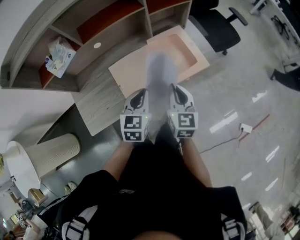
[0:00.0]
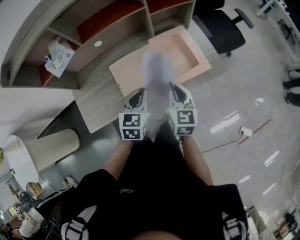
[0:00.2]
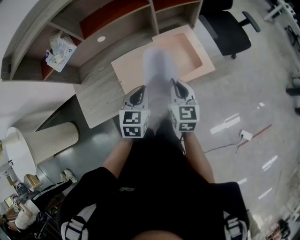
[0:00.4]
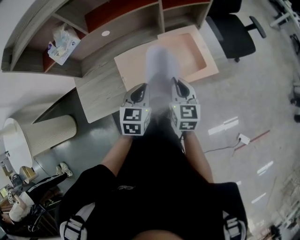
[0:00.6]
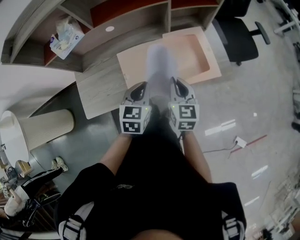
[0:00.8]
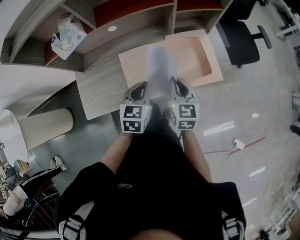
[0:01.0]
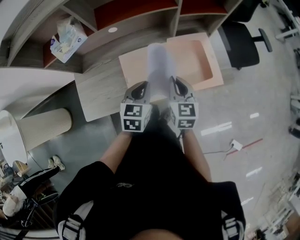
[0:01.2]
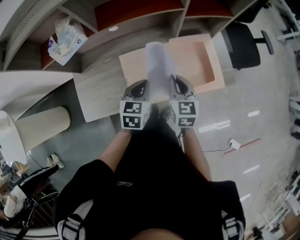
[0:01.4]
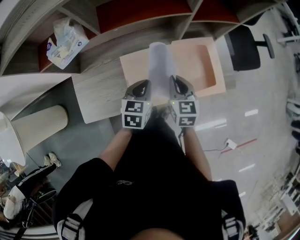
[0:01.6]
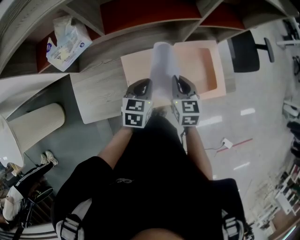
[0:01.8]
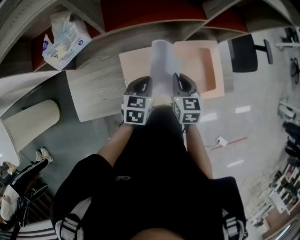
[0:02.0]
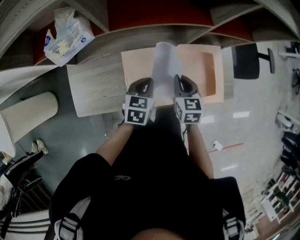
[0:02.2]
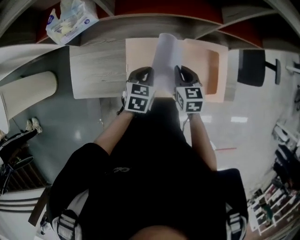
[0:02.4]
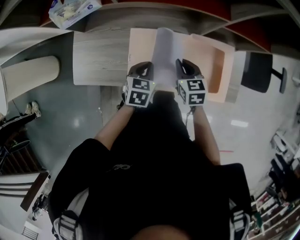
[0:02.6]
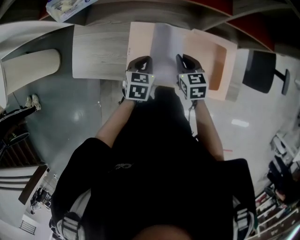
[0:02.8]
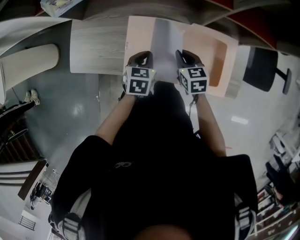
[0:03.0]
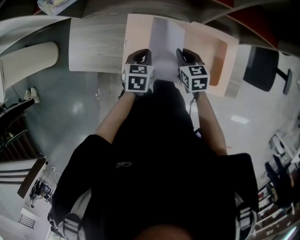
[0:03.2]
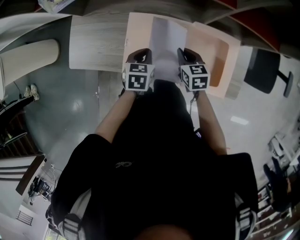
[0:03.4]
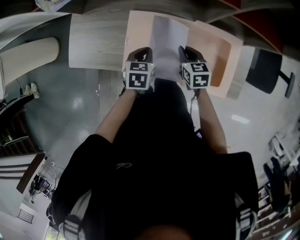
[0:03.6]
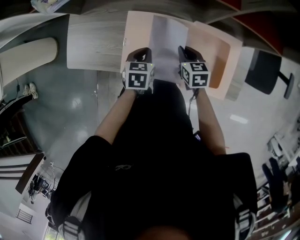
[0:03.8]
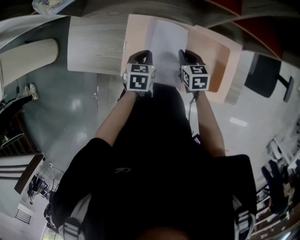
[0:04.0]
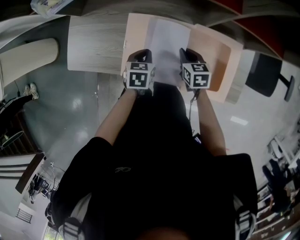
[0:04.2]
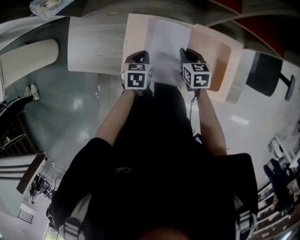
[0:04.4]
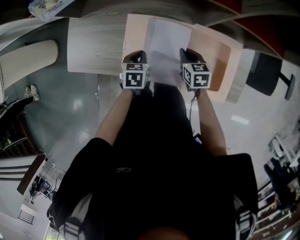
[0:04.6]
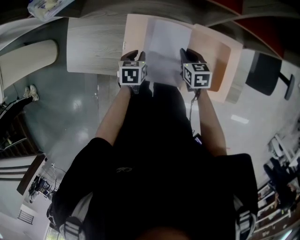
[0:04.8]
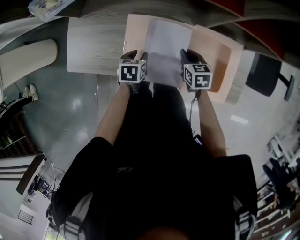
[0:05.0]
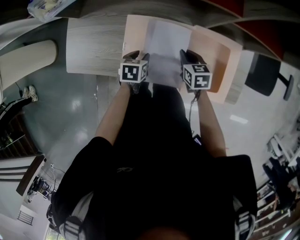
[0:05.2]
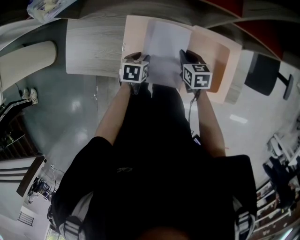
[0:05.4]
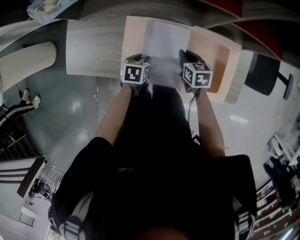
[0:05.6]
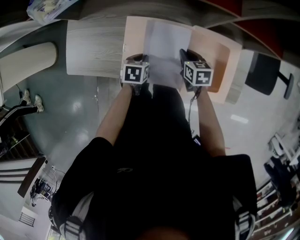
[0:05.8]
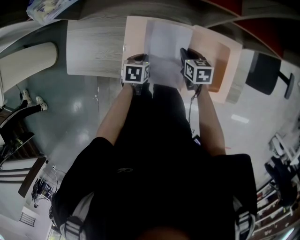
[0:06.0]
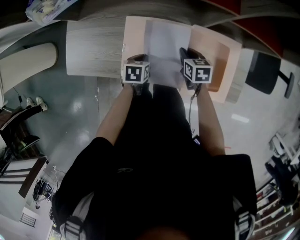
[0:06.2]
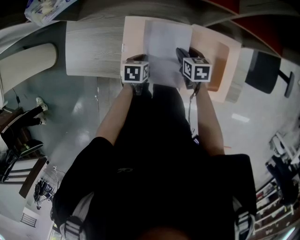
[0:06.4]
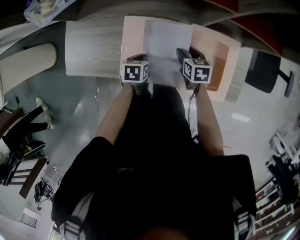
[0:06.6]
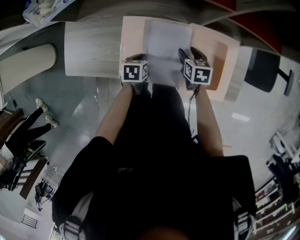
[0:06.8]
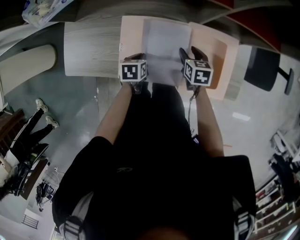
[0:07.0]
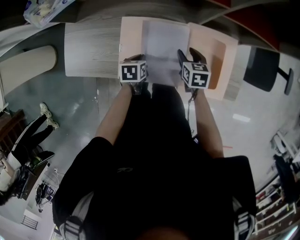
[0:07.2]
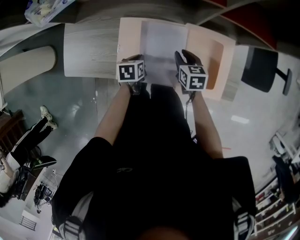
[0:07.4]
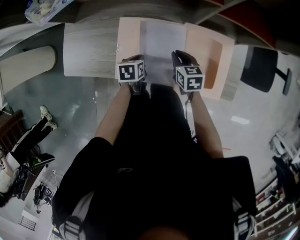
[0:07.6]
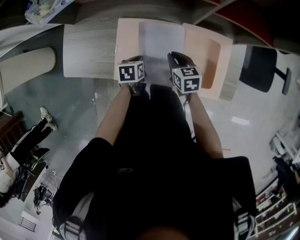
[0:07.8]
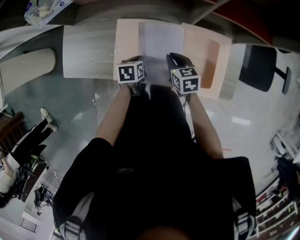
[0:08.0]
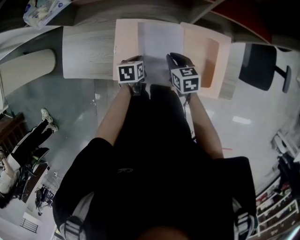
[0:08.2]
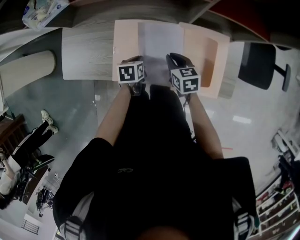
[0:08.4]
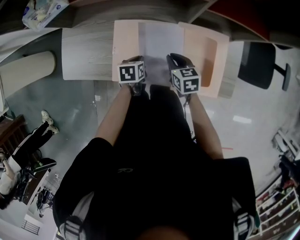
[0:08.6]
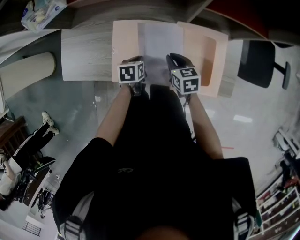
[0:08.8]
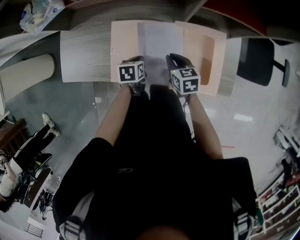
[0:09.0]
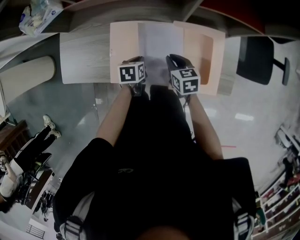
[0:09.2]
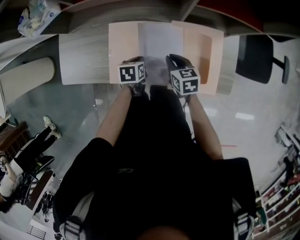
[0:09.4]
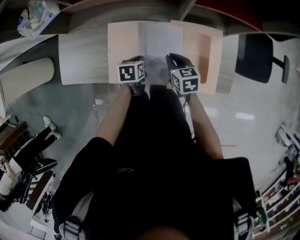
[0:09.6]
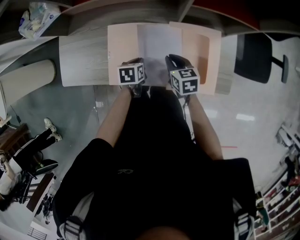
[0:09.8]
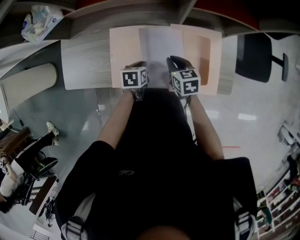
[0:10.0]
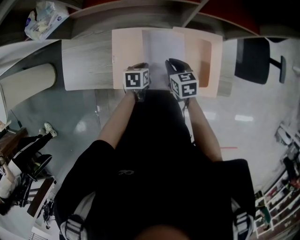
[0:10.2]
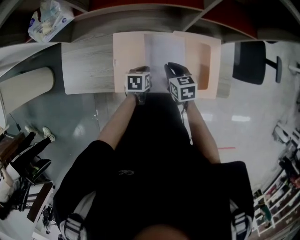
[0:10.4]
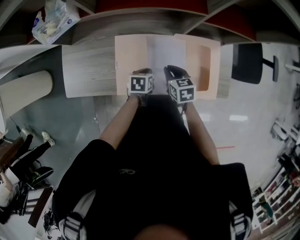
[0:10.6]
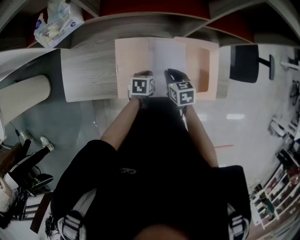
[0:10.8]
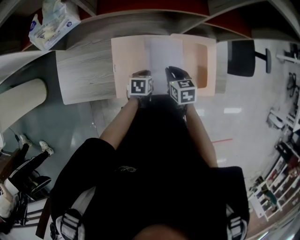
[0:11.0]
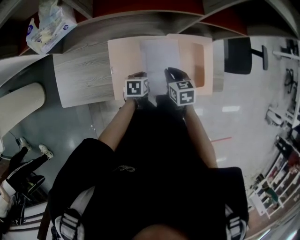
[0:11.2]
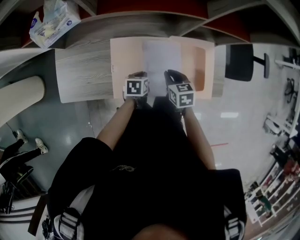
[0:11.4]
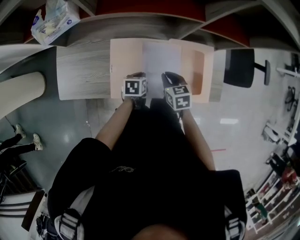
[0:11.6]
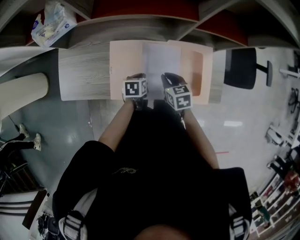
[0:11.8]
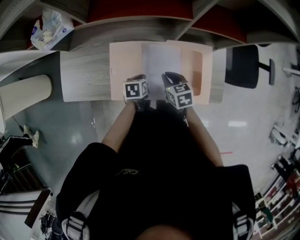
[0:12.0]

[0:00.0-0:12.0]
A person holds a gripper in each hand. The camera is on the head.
0:00.0 to 0:01.6: The right gripper shifts roughly 15 cm forward, to the left and downward, and swivels about 20 degrees. The left gripper travels forward, downward and to the left by roughly 15 cm.
0:01.6 to 0:03.0: The two grippers go some 10 cm downward. The left gripper swivels some 20 degrees. The right gripper changes its angle by approximately 30 degrees.
0:03.0 to 0:04.4: The two grippers go roughly 5 cm downward.
0:04.4 to 0:06.0: The left gripper opens, then closes again.
0:06.0 to 0:07.6: The right gripper opens, then closes once more.
0:07.6 to 0:12.0: There are only small adjustments of the grippers.

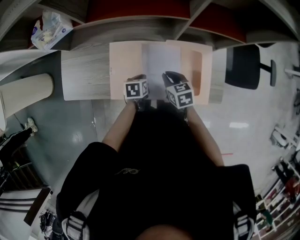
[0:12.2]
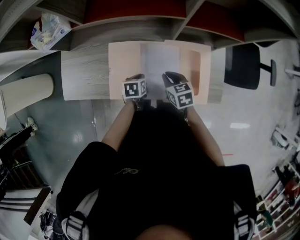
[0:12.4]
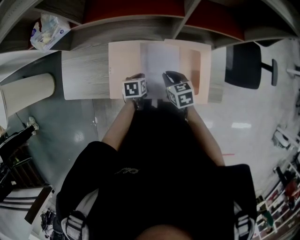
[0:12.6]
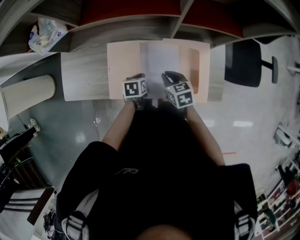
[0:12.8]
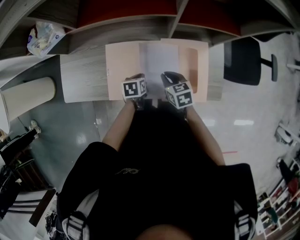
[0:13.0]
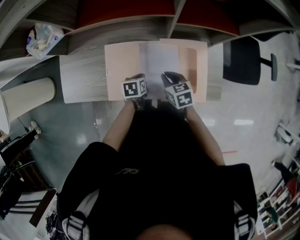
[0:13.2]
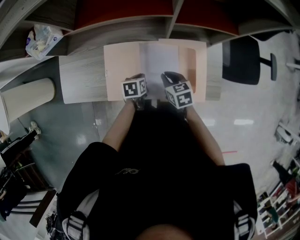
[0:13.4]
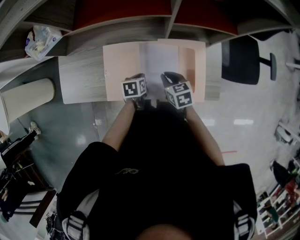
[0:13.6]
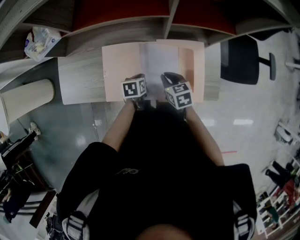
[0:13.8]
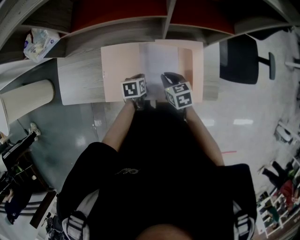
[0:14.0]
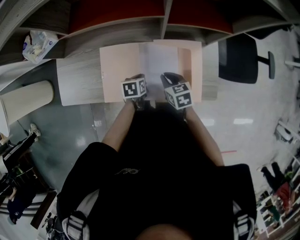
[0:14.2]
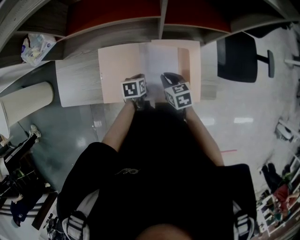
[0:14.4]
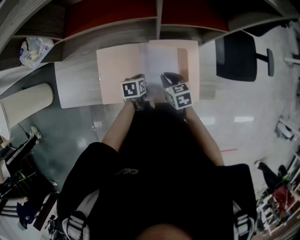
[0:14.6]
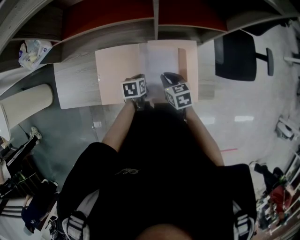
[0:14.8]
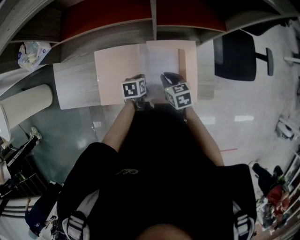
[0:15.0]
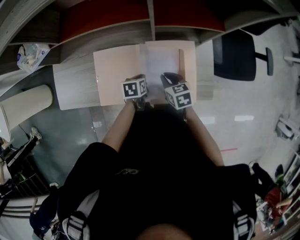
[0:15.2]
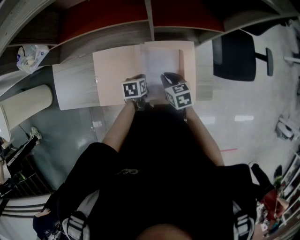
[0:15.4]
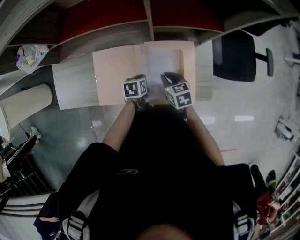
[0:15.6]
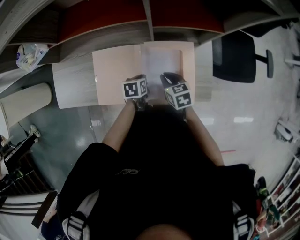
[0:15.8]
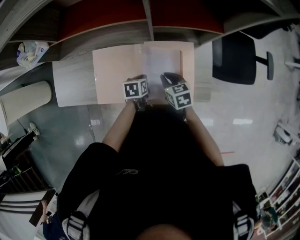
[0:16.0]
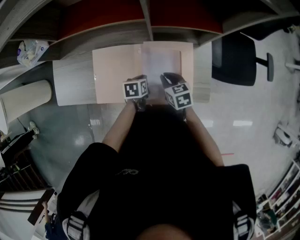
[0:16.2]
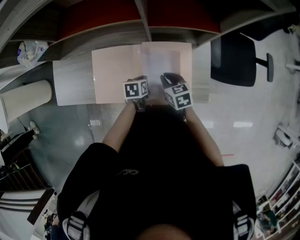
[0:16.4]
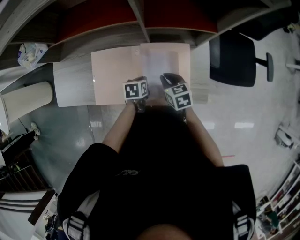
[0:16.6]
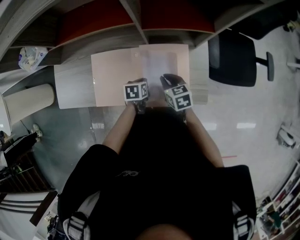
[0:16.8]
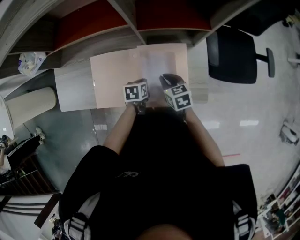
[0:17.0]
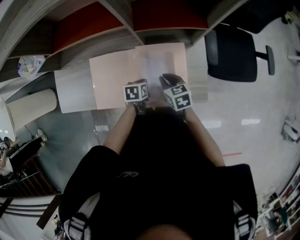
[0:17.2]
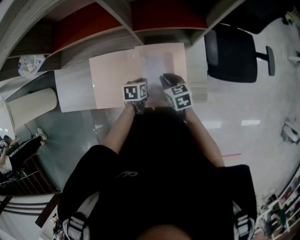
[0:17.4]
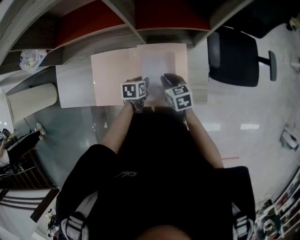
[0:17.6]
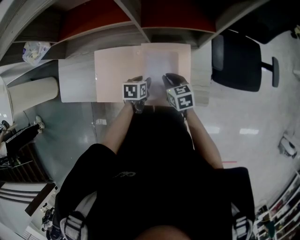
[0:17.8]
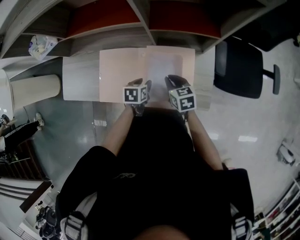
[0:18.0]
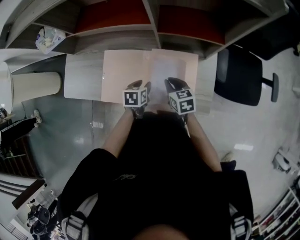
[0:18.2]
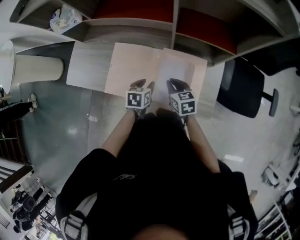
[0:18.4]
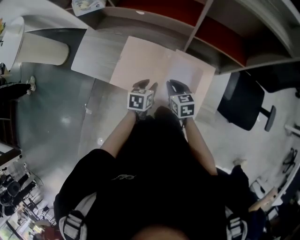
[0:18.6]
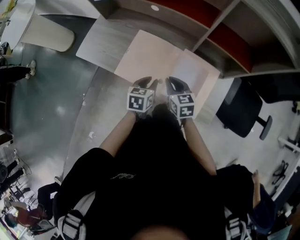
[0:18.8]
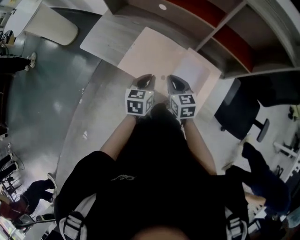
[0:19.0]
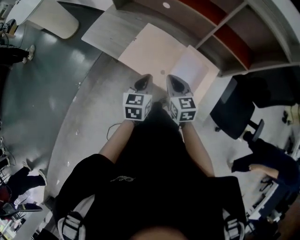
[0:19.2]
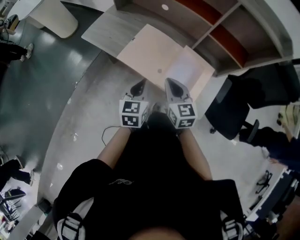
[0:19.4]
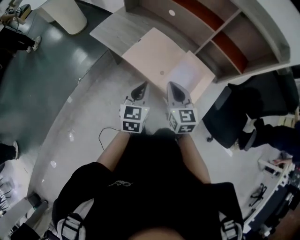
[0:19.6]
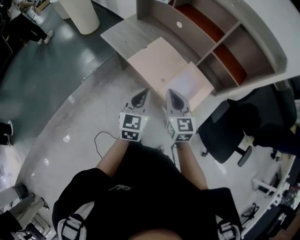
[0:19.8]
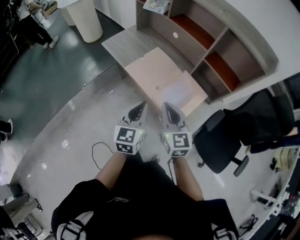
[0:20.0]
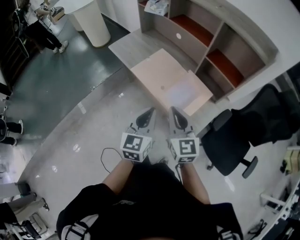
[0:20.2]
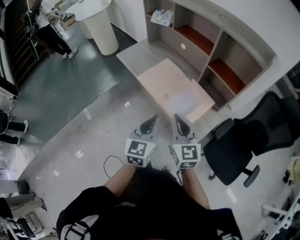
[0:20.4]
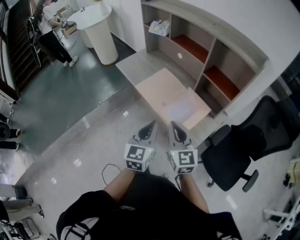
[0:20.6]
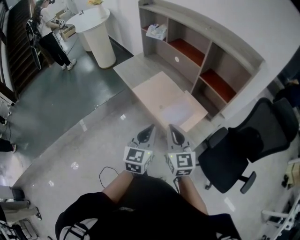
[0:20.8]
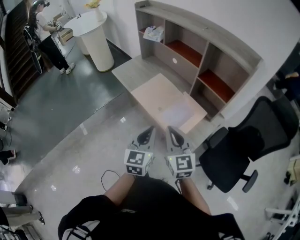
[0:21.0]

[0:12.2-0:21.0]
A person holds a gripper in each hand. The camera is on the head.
0:12.2 to 0:13.6: The grippers stay close to where they were, moving slightly.
0:13.6 to 0:15.2: Both grippers move to the right, about 5 cm.
0:15.2 to 0:16.6: The grippers make only small movements.
0:16.6 to 0:18.0: The left gripper opens up.
0:18.0 to 0:19.6: The two grippers go approximately 20 cm upward. The left gripper points its fingers roughly 40 degrees further upward, and closes up. The right gripper rotates roughly 40 degrees.
0:19.6 to 0:21.0: The left gripper moves backward, upward and to the right, roughly 20 cm. The right gripper goes approximately 20 cm backward and upward.

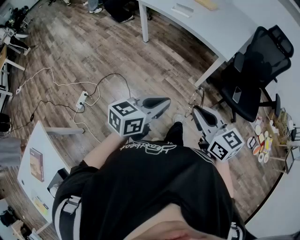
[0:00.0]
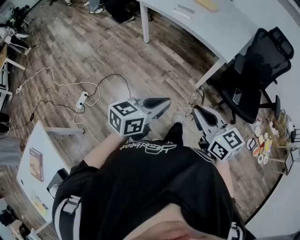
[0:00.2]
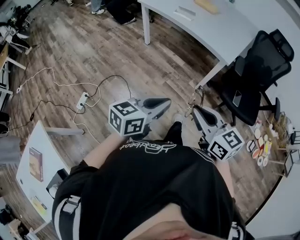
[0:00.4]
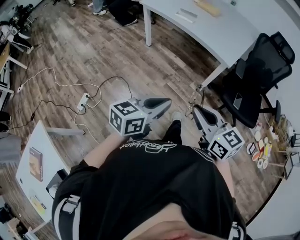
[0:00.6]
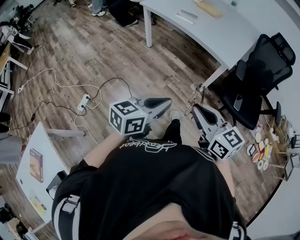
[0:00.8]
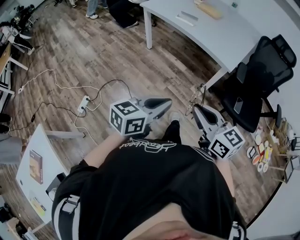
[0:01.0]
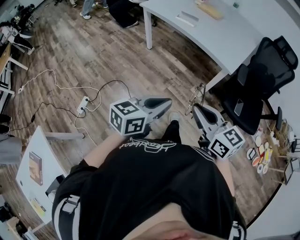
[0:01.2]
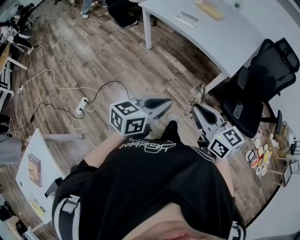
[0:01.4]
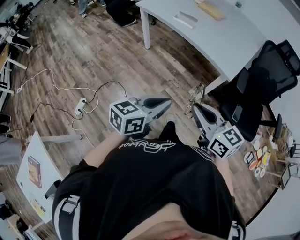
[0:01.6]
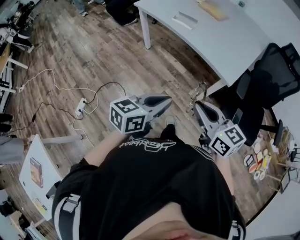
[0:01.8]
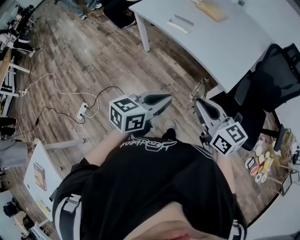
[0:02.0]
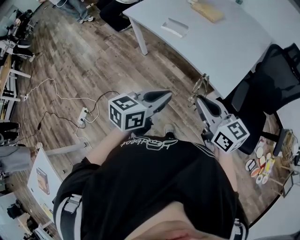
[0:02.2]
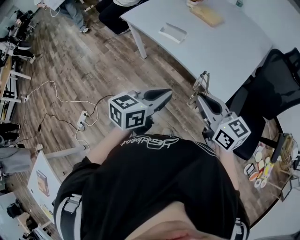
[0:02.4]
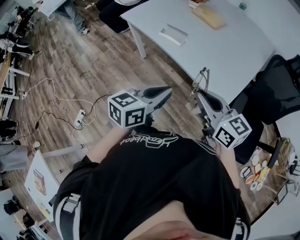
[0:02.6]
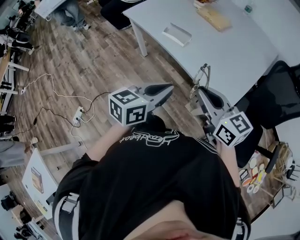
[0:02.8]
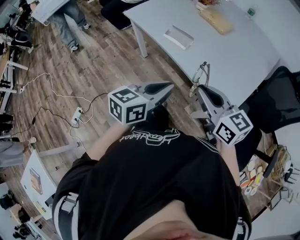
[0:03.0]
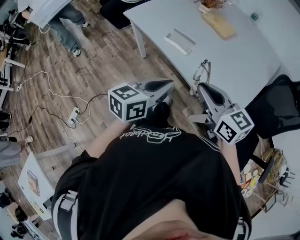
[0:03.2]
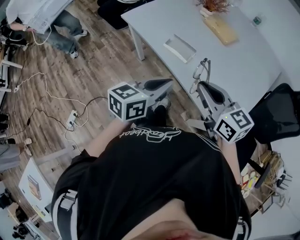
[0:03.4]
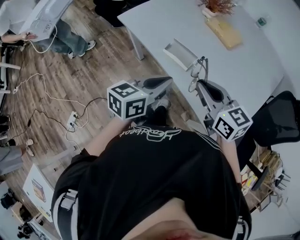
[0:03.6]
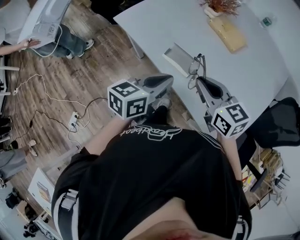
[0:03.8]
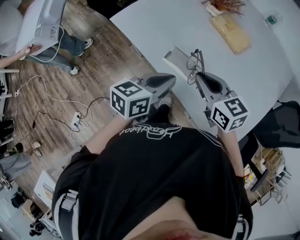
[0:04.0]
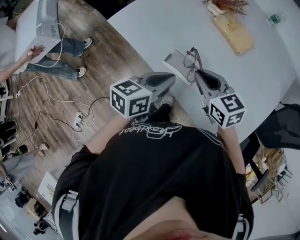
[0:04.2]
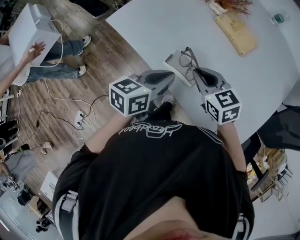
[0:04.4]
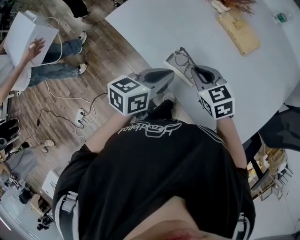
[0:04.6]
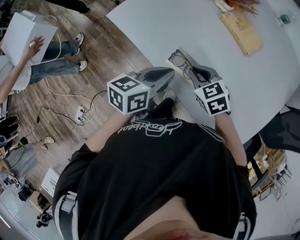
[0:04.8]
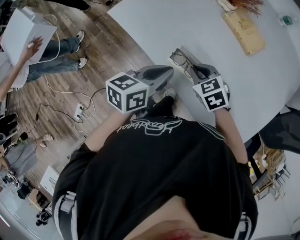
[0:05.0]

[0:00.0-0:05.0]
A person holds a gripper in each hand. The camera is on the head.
0:00.0 to 0:01.6: The grippers both shift forward by about 15 cm.
0:01.6 to 0:03.4: The pair of grippers is taken forward, approximately 40 cm.
0:03.4 to 0:05.0: The left gripper is displaced forward by some 20 cm. The right gripper goes about 30 cm forward and downward, and tips its fingers downward by some 40 degrees.
